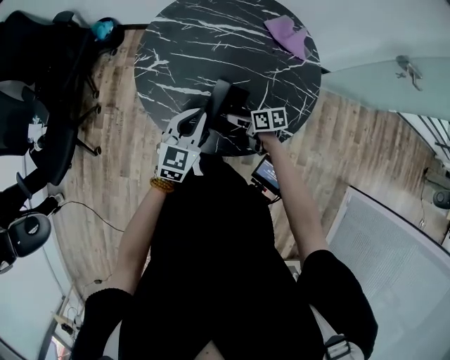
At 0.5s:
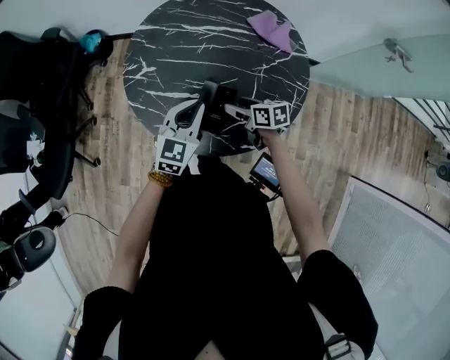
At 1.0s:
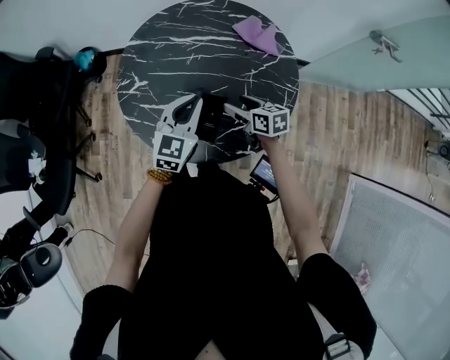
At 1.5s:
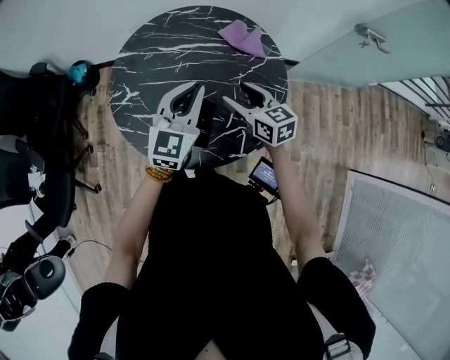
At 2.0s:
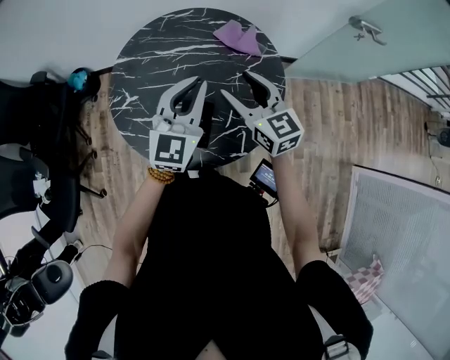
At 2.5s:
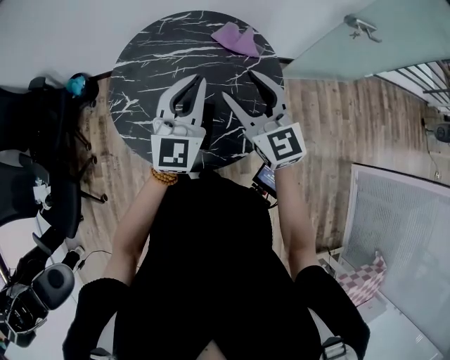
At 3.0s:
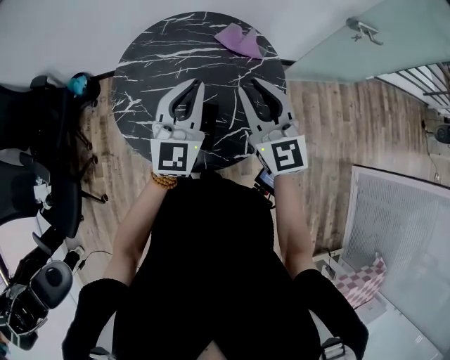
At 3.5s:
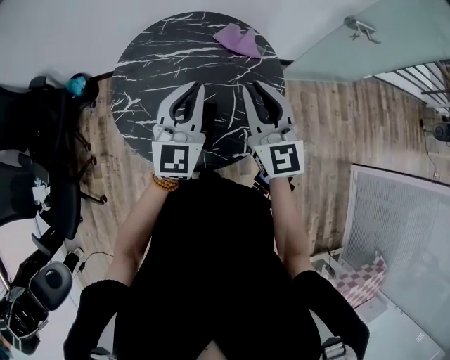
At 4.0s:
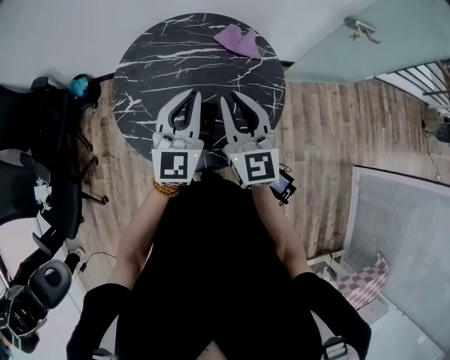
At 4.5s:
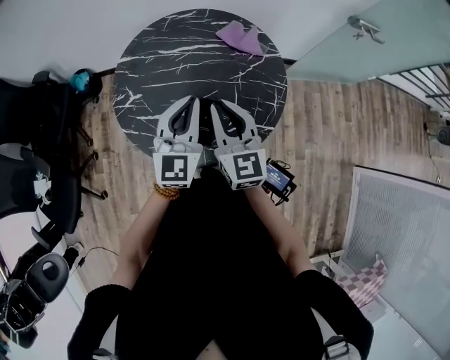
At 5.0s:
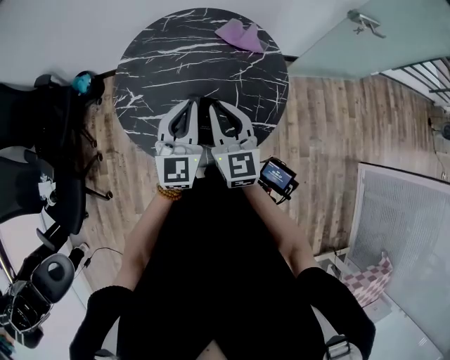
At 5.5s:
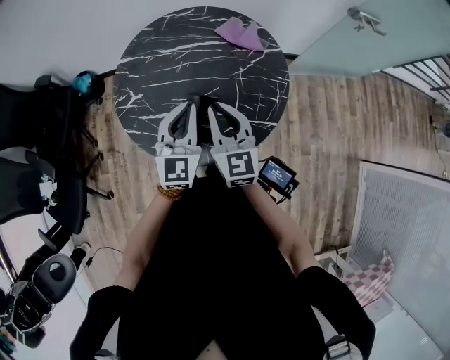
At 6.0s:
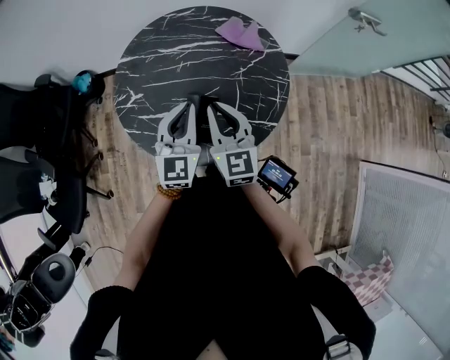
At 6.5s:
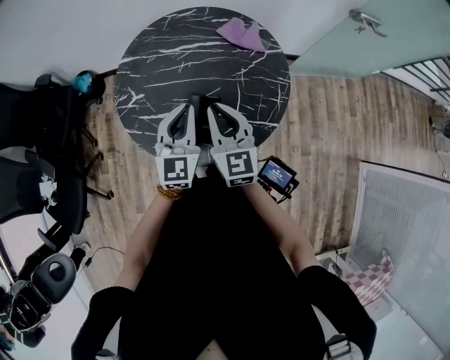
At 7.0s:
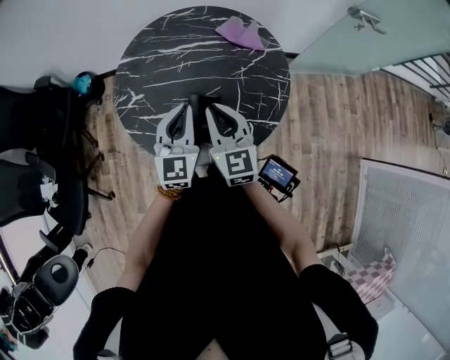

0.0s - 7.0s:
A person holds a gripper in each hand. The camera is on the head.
0.0s - 2.0s: The right gripper heads upward, covering some 30 cm, and angles its fingers upward, by about 30 degrees; the left gripper goes some 20 cm upward and to the right, and swivels roughly 20 degrees.
2.0s - 3.5s: The right gripper moves upward, roughly 5 cm, swivels some 20 degrees, and closes its fingers.
3.5s - 5.0s: The right gripper moves downward and to the left, some 10 cm; the left gripper shifts some 5 cm downward.
5.0s - 7.0s: The grippers move only a little.

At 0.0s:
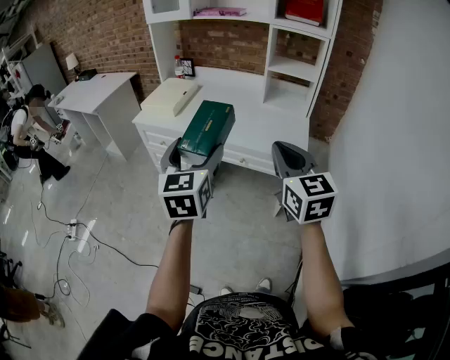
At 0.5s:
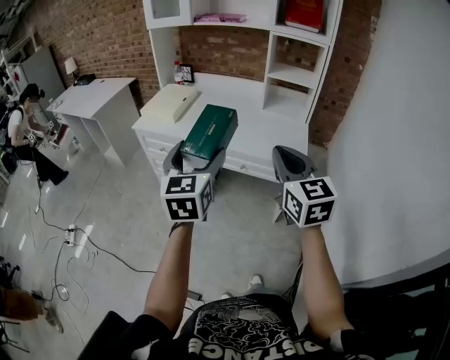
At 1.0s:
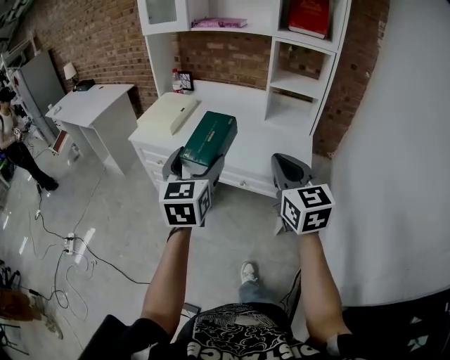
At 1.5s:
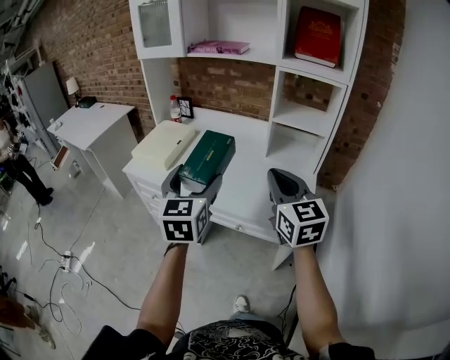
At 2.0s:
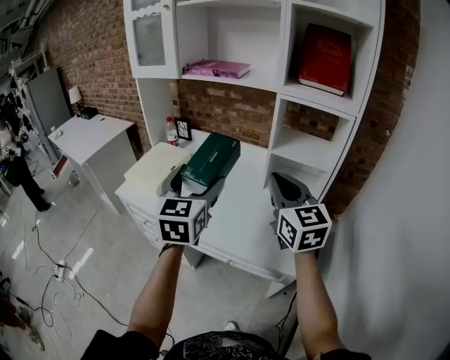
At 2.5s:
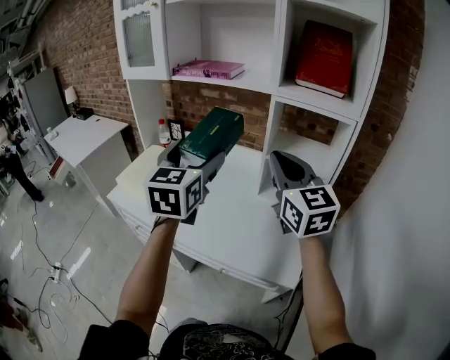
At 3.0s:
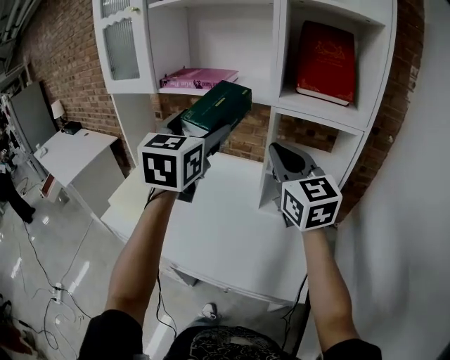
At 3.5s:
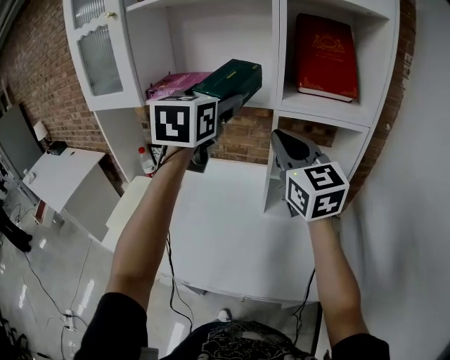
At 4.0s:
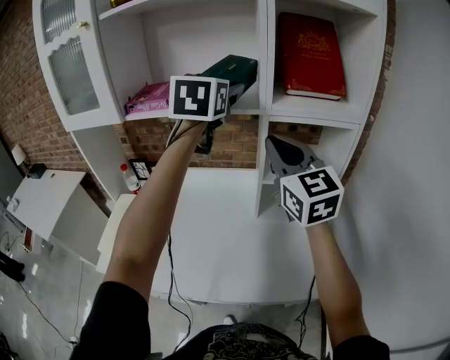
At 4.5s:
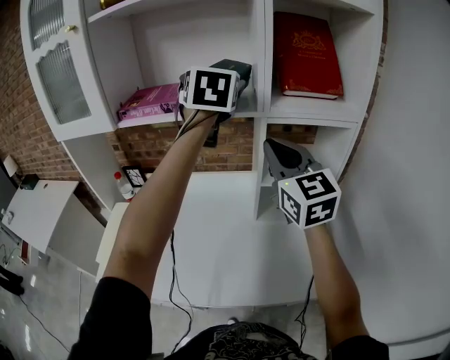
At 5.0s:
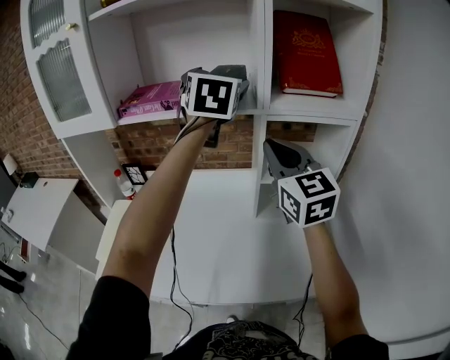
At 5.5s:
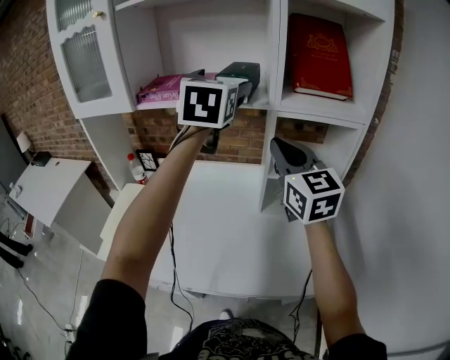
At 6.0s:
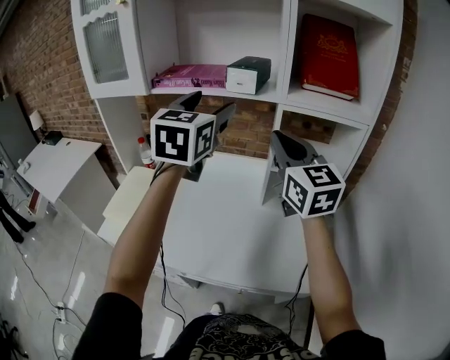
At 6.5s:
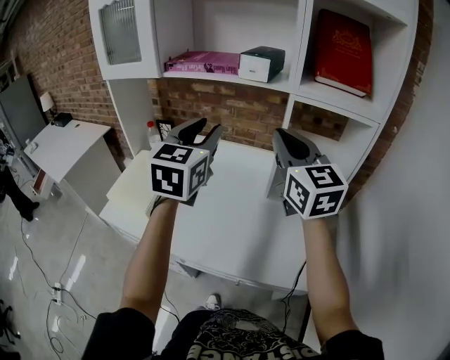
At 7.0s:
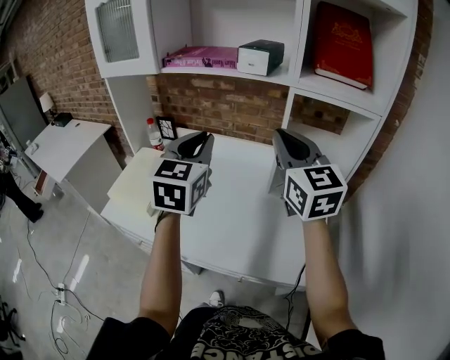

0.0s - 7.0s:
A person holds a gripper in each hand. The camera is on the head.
0.0s - 2.0s: The two grippers go some 35 cm forward.
2.0s - 3.5s: The left gripper shifts some 30 cm forward and upward, while the right gripper heads forward and upward, covering some 20 cm.
3.5s - 5.0s: The left gripper moves forward, some 10 cm.
5.0s - 7.0s: The right gripper travels backward by approximately 5 cm; the left gripper heads backward, downward and to the left, covering roughly 30 cm, and closes its fingers.

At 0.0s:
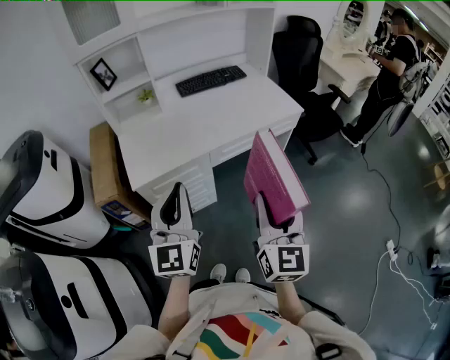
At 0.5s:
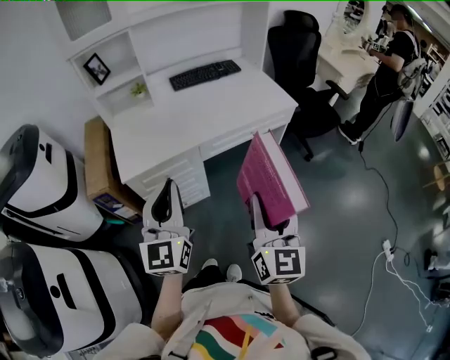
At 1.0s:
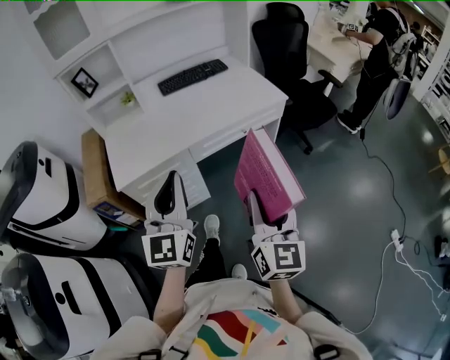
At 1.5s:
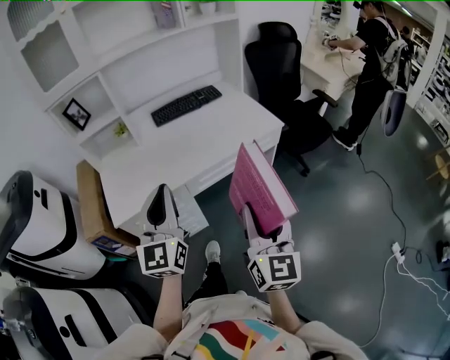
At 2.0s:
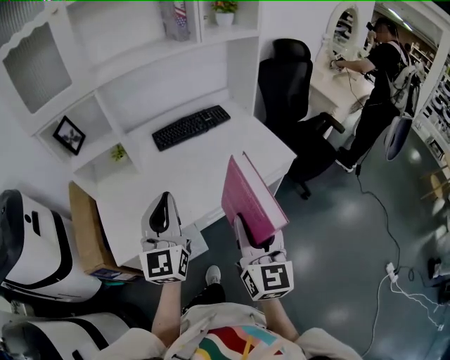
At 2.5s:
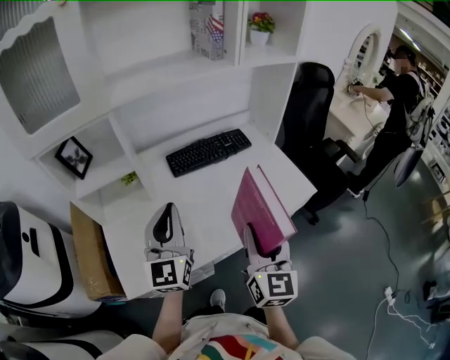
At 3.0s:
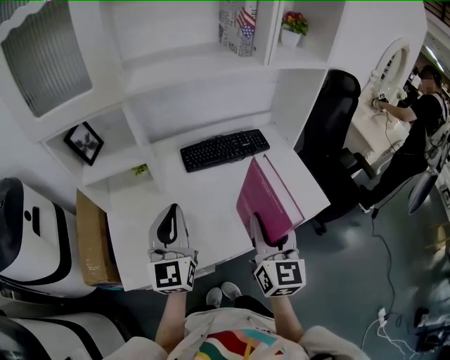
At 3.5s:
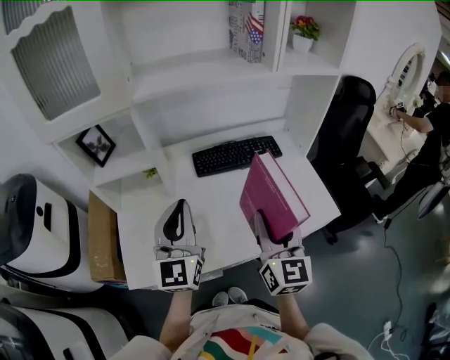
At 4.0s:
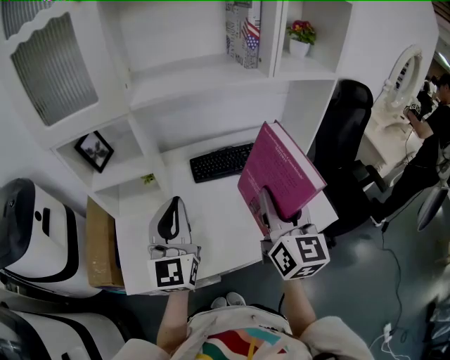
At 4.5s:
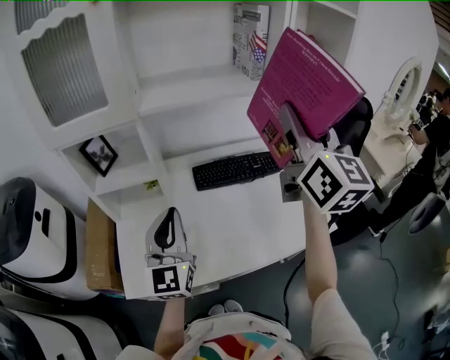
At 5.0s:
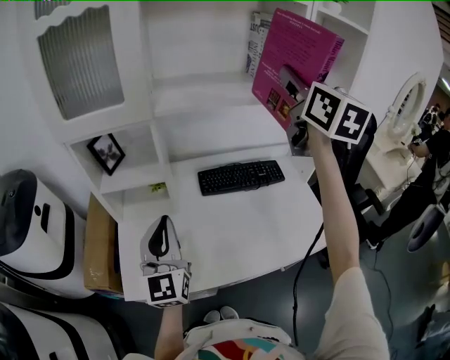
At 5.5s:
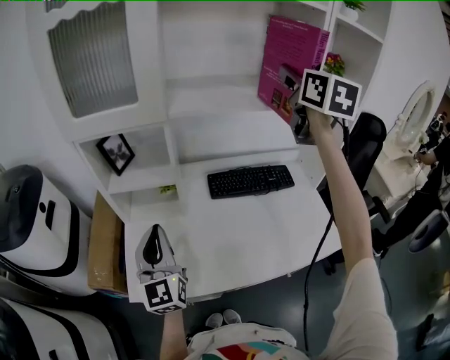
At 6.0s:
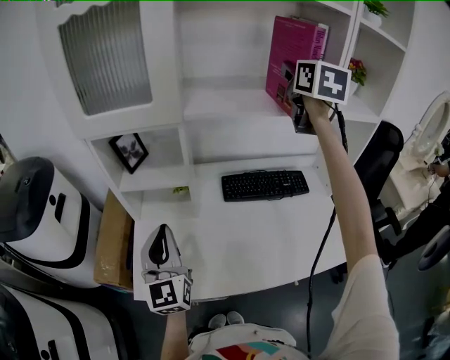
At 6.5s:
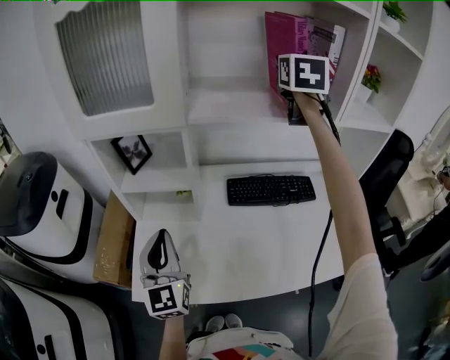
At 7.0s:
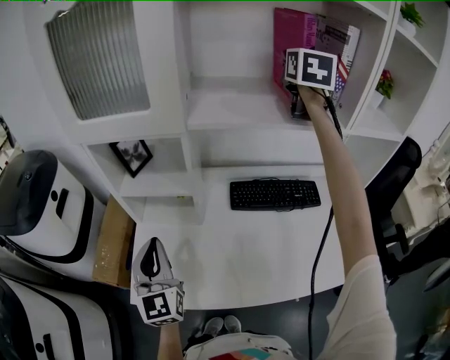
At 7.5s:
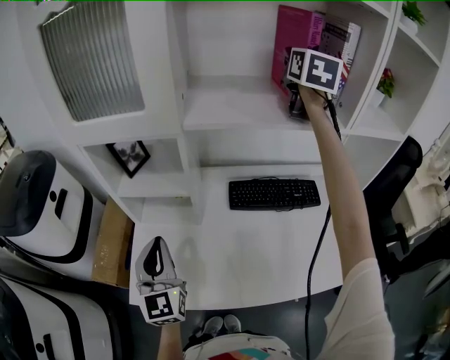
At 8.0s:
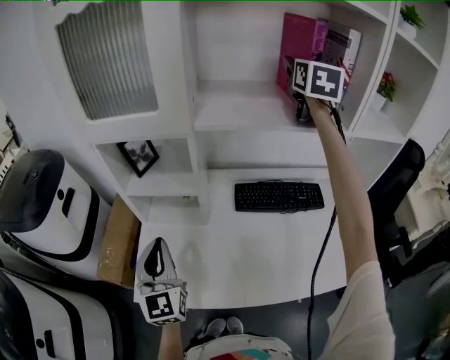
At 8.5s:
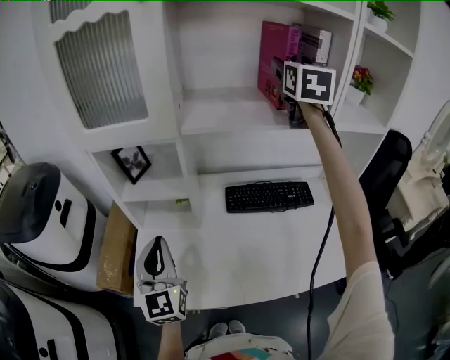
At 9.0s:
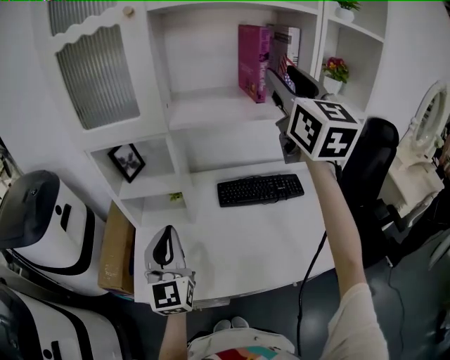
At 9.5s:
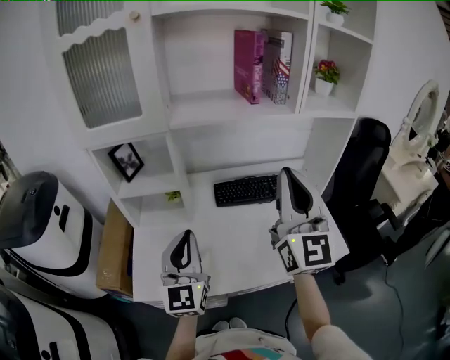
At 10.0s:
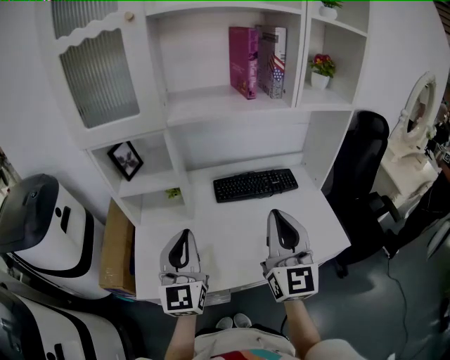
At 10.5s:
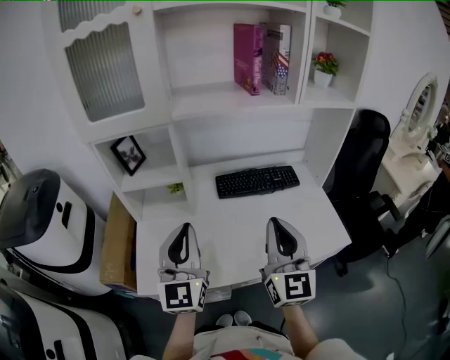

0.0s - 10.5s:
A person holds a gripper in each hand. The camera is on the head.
0.0s - 2.0s: The grippers both shift forward by roughly 25 cm.
2.0s - 4.0s: The right gripper shifts about 30 cm forward. Meanwhile the left gripper travels forward by roughly 15 cm.
4.0s - 6.5s: The left gripper travels to the left by approximately 15 cm, and changes its angle by some 20 degrees. Meanwhile the right gripper goes about 40 cm forward and upward, and changes its angle by approximately 20 degrees.
6.5s - 8.5s: The right gripper opens its fingers.
8.5s - 10.5s: The left gripper heads to the right and backward, covering some 10 cm. Meanwhile the right gripper is displaced backward and downward by approximately 50 cm, and closes up.

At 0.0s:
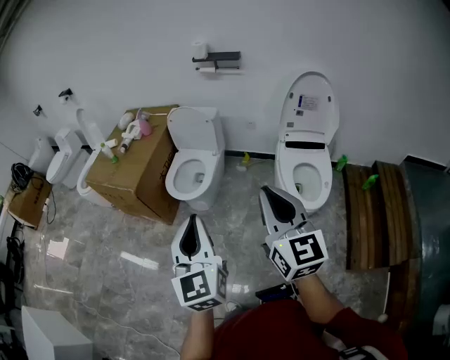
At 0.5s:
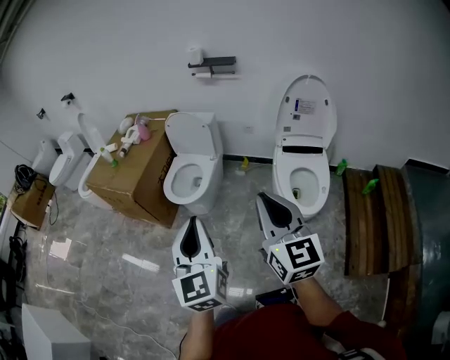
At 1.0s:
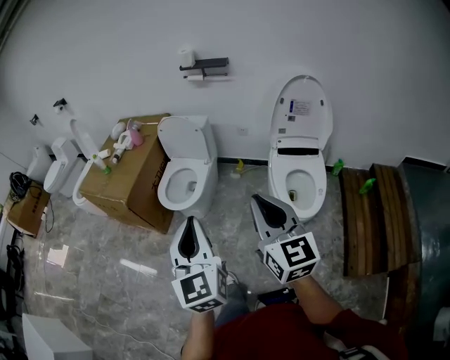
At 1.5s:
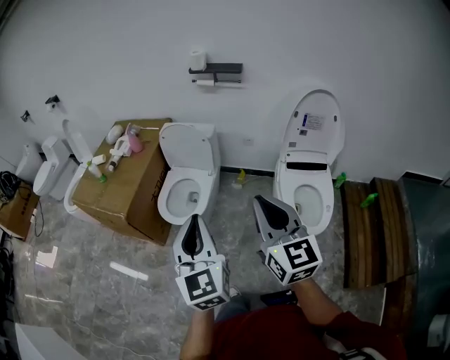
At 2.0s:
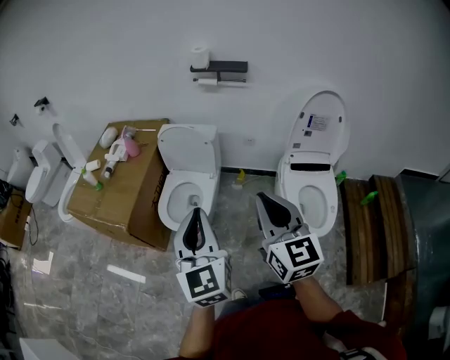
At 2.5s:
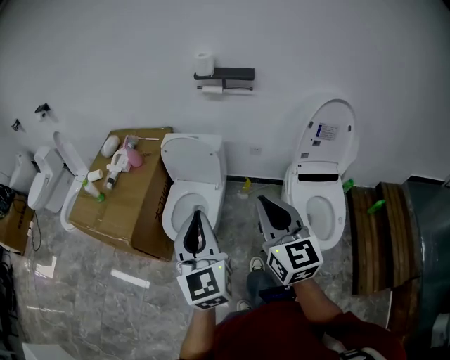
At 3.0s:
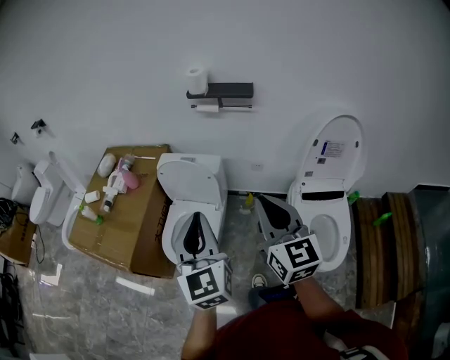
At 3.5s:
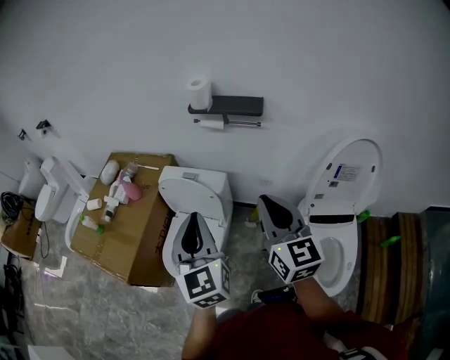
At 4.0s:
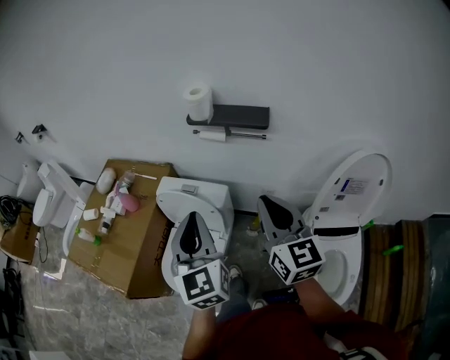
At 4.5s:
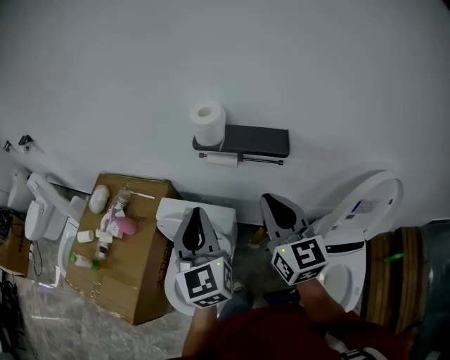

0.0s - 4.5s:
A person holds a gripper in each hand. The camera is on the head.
0.0s - 2.0s: The grippers both shift forward by roughly 25 cm.
2.0s - 4.5s: The two grippers travel together, forward, roughly 60 cm.
